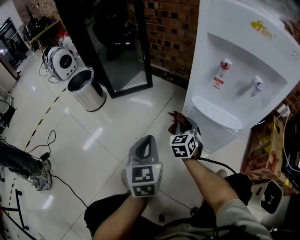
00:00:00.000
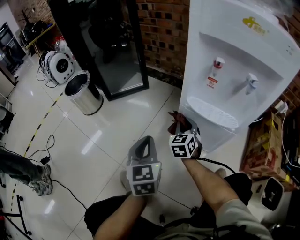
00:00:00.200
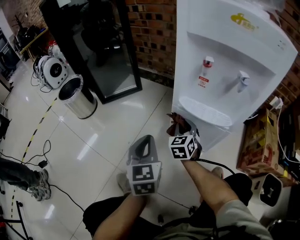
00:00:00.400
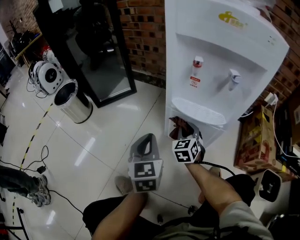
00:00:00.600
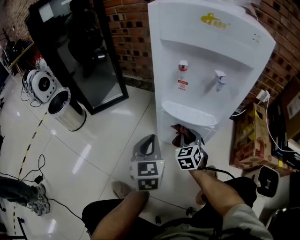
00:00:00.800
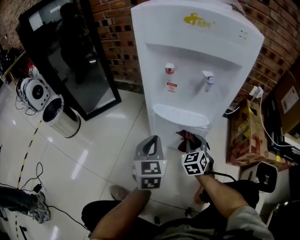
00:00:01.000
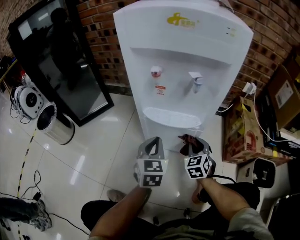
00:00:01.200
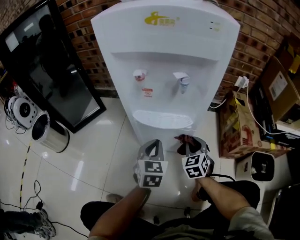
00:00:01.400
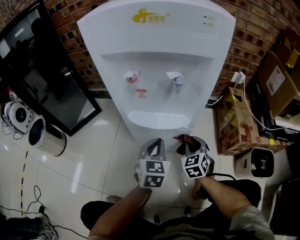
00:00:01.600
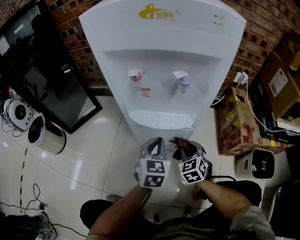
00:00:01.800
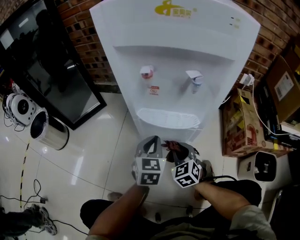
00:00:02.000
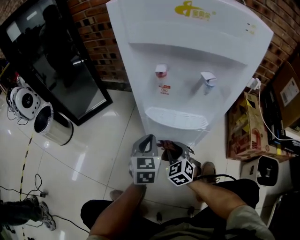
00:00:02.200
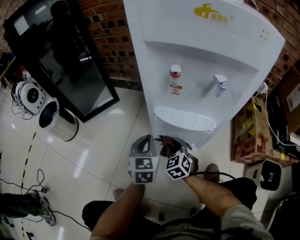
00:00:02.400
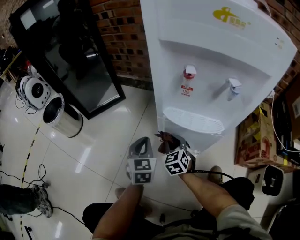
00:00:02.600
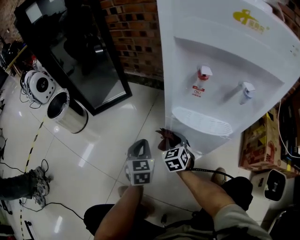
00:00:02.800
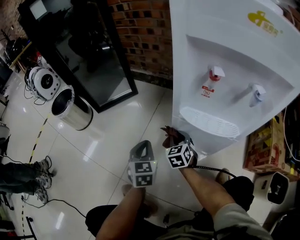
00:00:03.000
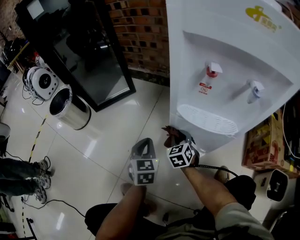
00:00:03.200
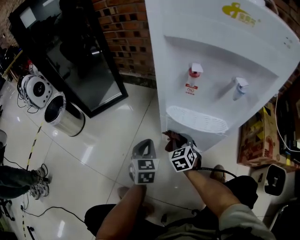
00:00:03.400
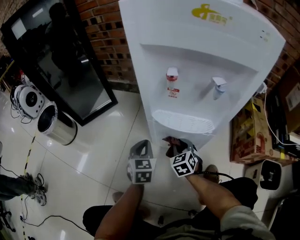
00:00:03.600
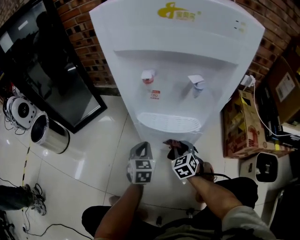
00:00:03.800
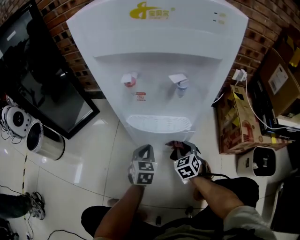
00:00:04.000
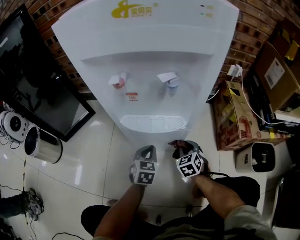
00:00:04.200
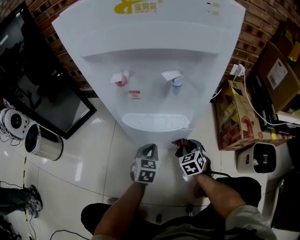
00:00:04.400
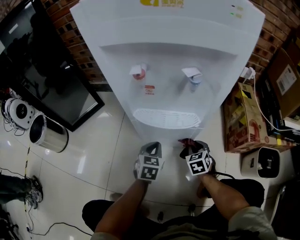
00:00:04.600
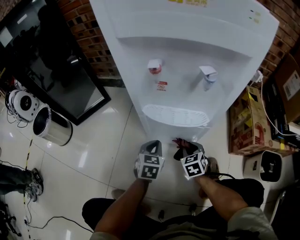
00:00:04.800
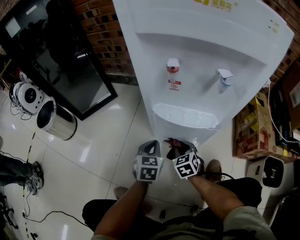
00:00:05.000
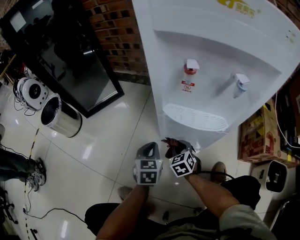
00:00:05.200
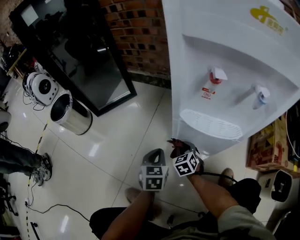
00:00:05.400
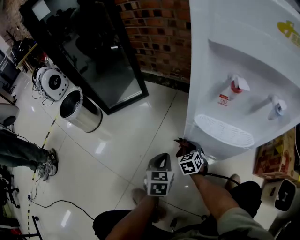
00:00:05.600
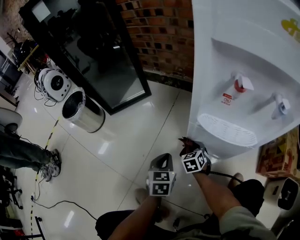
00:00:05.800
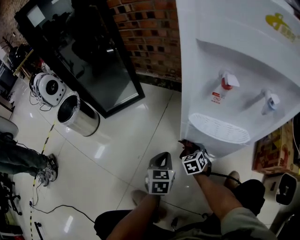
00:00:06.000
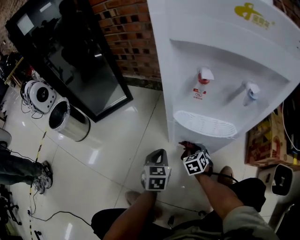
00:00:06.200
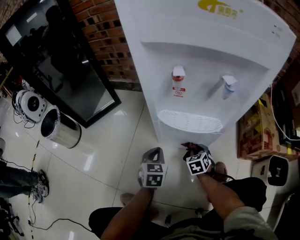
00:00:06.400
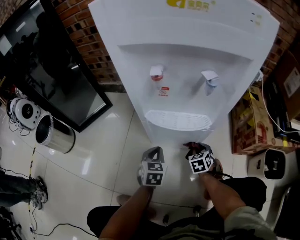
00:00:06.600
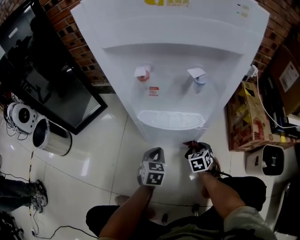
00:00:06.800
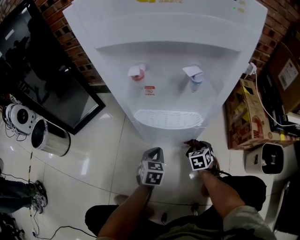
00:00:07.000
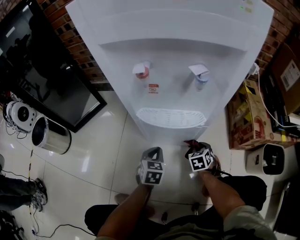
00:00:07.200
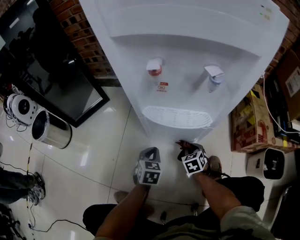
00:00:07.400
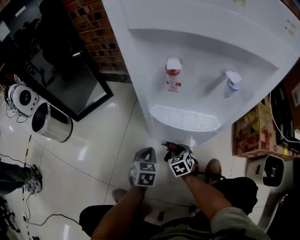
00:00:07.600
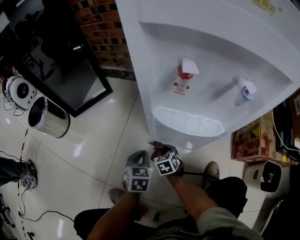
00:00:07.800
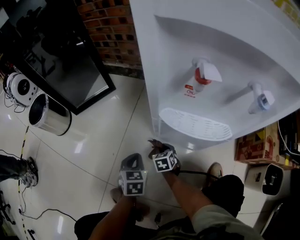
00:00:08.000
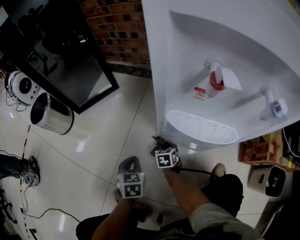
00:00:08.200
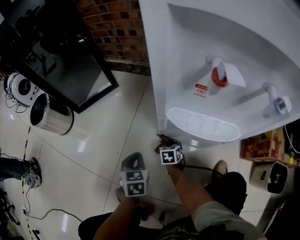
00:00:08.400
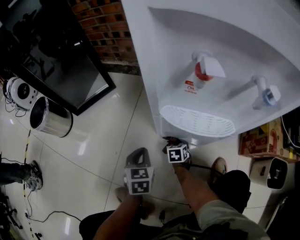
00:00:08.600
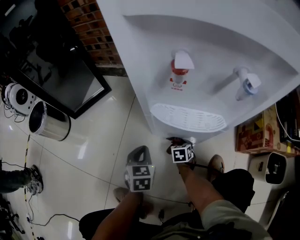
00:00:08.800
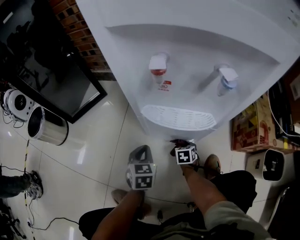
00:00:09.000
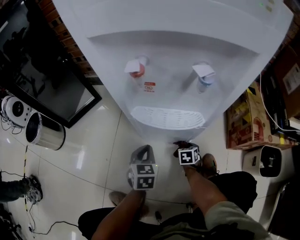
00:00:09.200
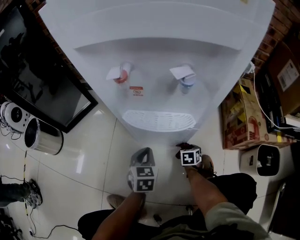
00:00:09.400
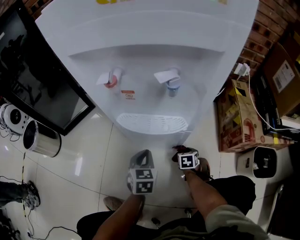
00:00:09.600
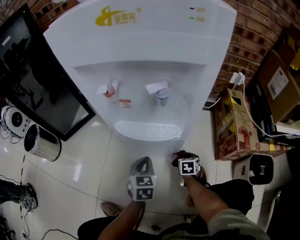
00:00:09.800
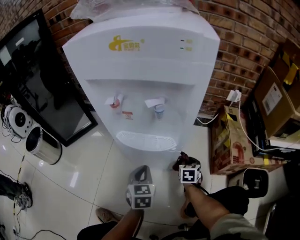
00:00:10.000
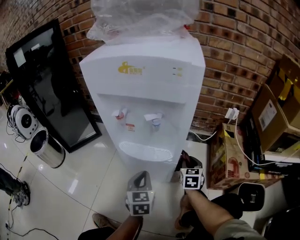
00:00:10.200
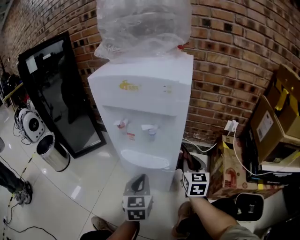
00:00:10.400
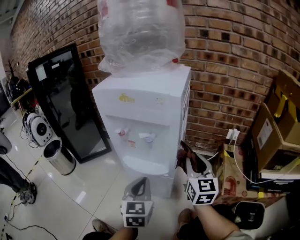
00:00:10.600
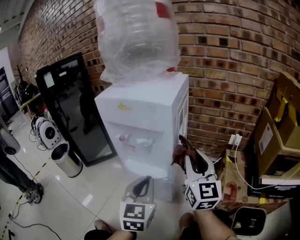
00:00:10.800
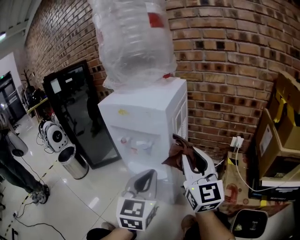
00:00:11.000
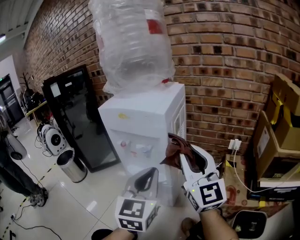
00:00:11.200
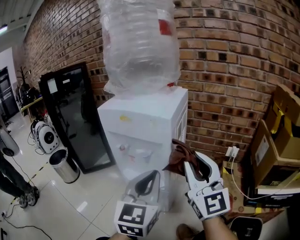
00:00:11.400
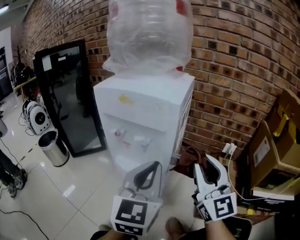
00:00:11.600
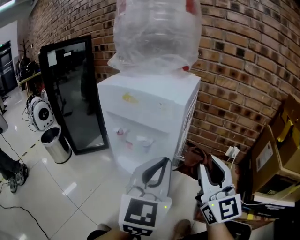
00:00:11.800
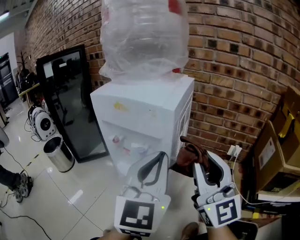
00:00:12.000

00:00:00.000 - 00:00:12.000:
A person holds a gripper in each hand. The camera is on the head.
00:00:00.000 - 00:00:01.600: The left gripper moves roughly 25 cm, and swivels roughly 40 degrees. The right gripper shifts by about 25 cm.
00:00:01.600 - 00:00:03.000: Both grippers travel together to the left, roughly 25 cm. The left gripper changes its angle by some 30 degrees.
00:00:03.000 - 00:00:04.400: The right gripper shifts by roughly 25 cm. The left gripper ends up about 20 cm from where it was, and swivels roughly 30 degrees.
00:00:04.400 - 00:00:06.000: The two grippers go some 20 cm to the left. The left gripper changes its angle by some 20 degrees.
00:00:06.000 - 00:00:07.600: The left gripper shifts about 5 cm to the right. Meanwhile the right gripper reaches about 25 cm to the right, then returns.
00:00:07.600 - 00:00:09.000: The left gripper travels to the left and back again, roughly 10 cm each way. The right gripper goes about 10 cm to the right and downward, and changes its angle by roughly 20 degrees.
00:00:09.000 - 00:00:10.400: The right gripper is displaced upward by some 35 cm, and tilts its fingers approximately 40 degrees upward. The left gripper goes about 25 cm upward and to the right, and rotates approximately 20 degrees.
00:00:10.400 - 00:00:12.000: Both grippers travel together upward, roughly 30 cm. The left gripper changes its angle by approximately 30 degrees. The right gripper angles its fingers upward, by about 40 degrees.

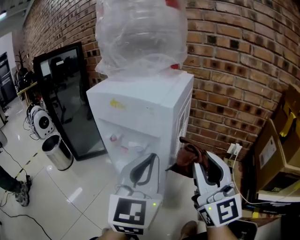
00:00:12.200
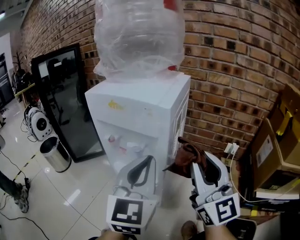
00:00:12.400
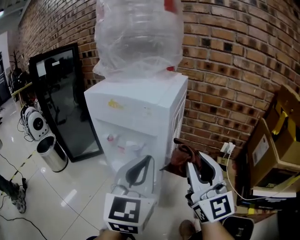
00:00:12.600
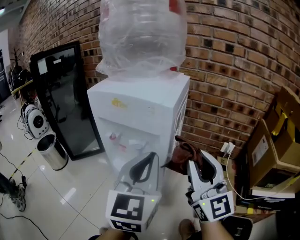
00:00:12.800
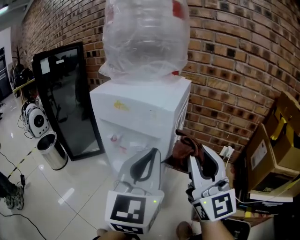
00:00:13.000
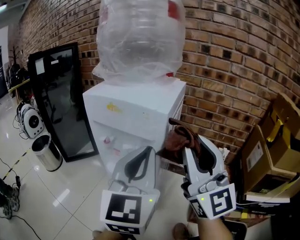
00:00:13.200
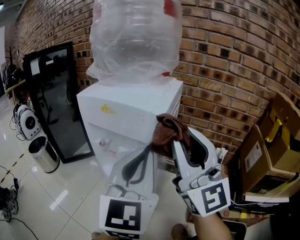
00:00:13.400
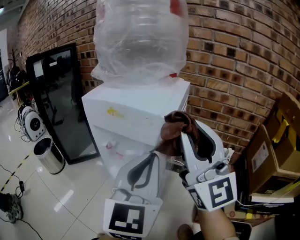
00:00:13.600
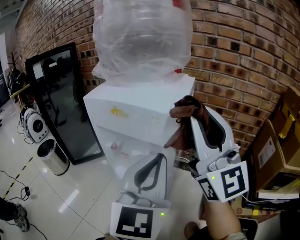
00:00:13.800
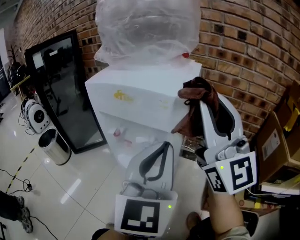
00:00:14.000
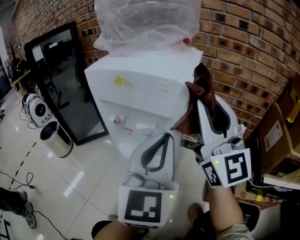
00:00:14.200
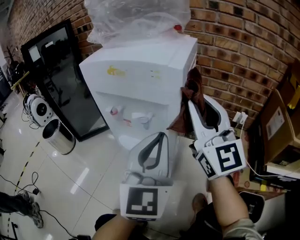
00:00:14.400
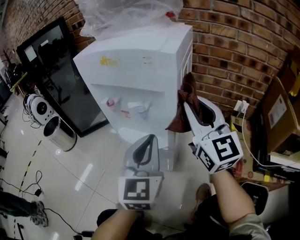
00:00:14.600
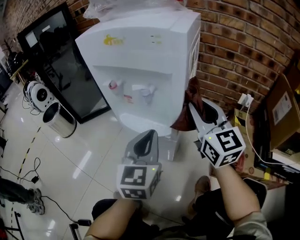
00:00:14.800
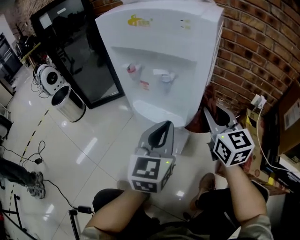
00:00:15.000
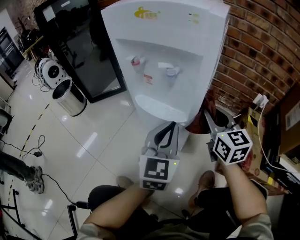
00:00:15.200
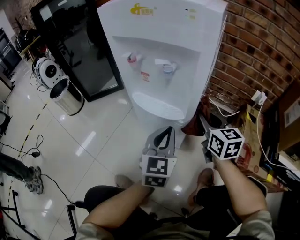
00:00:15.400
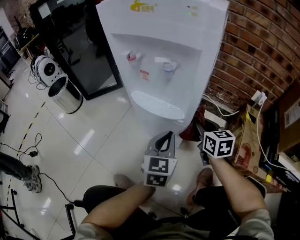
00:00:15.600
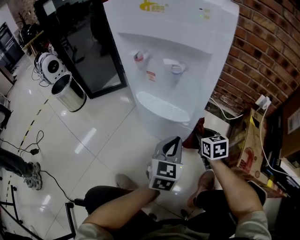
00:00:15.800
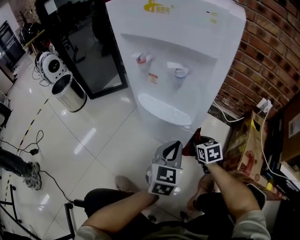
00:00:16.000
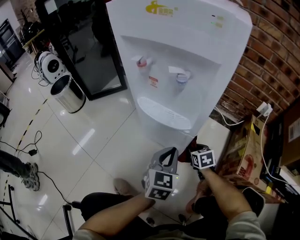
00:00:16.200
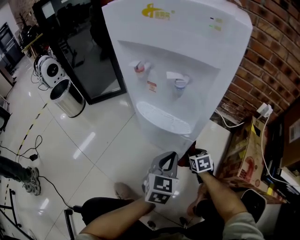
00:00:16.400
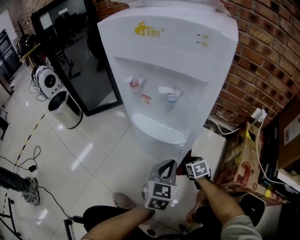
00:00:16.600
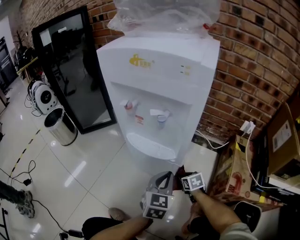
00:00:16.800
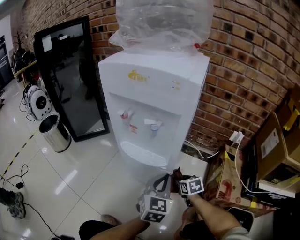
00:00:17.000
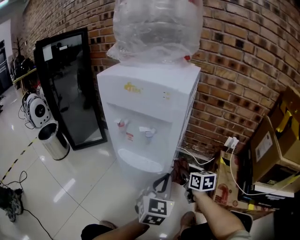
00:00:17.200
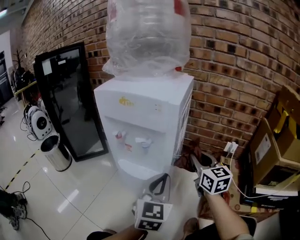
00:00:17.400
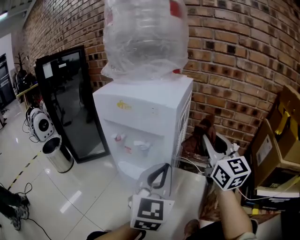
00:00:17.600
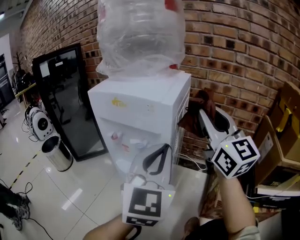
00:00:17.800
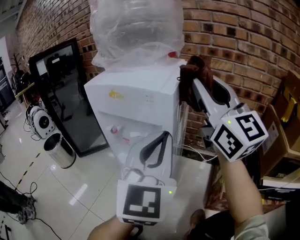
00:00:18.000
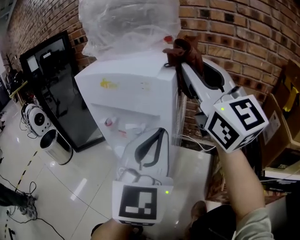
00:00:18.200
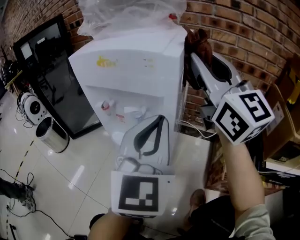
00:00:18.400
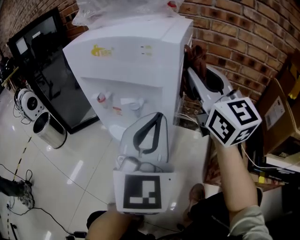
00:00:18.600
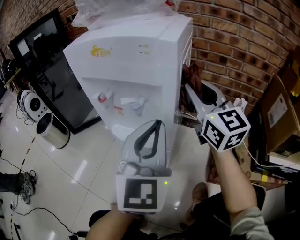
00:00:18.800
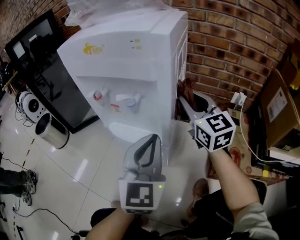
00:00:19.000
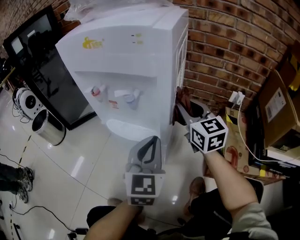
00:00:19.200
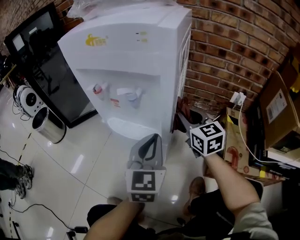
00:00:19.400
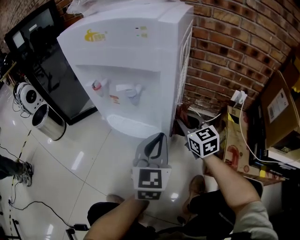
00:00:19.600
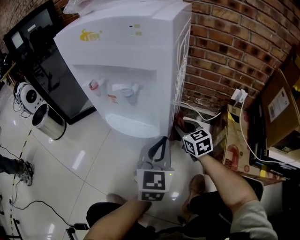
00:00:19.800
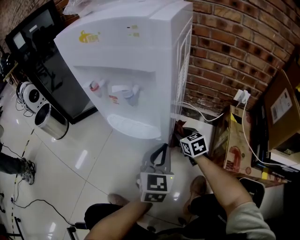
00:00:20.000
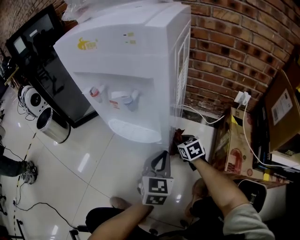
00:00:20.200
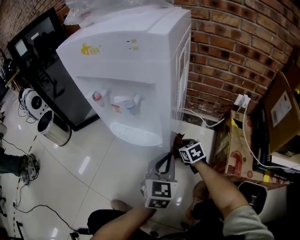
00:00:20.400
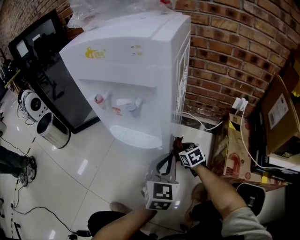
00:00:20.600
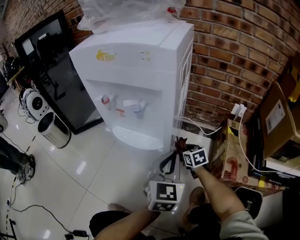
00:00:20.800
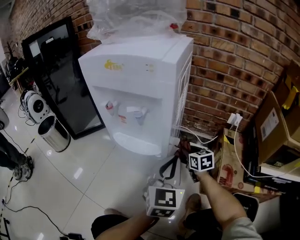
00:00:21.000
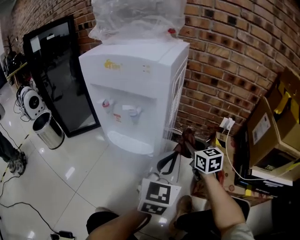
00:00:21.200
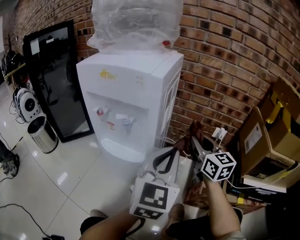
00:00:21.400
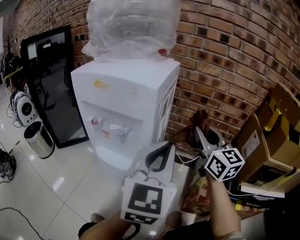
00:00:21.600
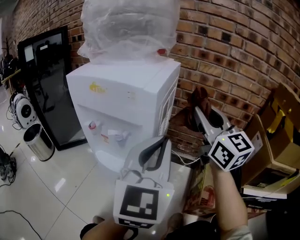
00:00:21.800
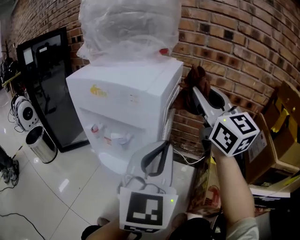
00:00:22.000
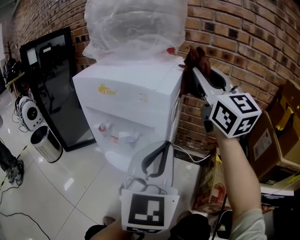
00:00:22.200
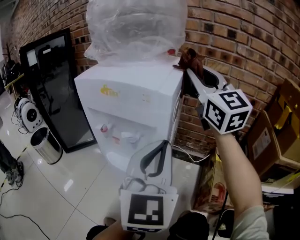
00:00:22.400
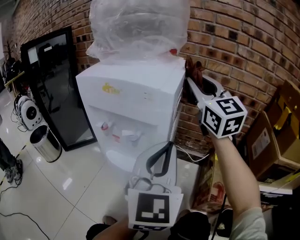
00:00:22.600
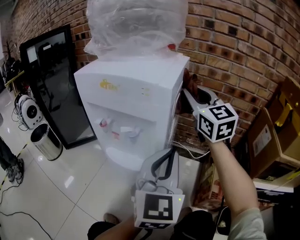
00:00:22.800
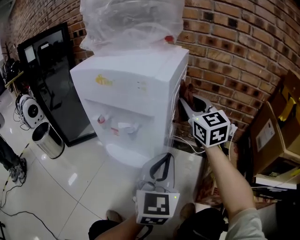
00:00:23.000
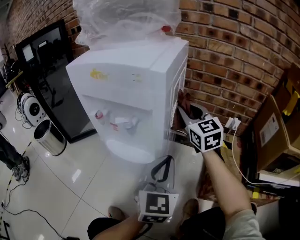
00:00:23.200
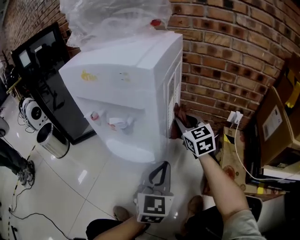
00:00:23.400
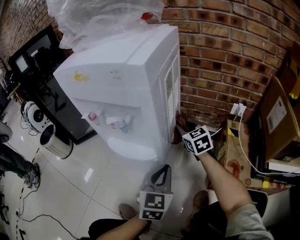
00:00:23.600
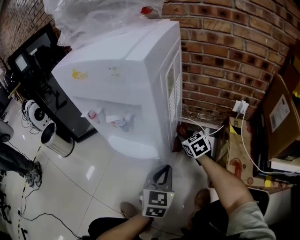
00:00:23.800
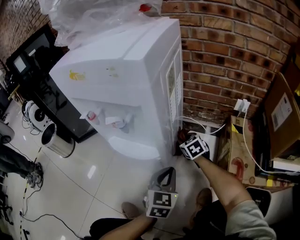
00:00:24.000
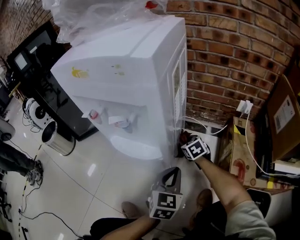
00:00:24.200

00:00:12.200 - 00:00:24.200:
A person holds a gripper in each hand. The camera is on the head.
00:00:12.200 - 00:00:13.800: The right gripper heads upward and forward, covering roughly 15 cm.
00:00:13.800 - 00:00:15.200: The two grippers go about 25 cm downward. The right gripper points its fingers roughly 40 degrees further downward.
00:00:15.200 - 00:00:16.600: The right gripper shifts approximately 35 cm downward, and angles its fingers downward, by roughly 40 degrees. The left gripper goes about 15 cm downward.
00:00:16.600 - 00:00:18.200: The left gripper goes about 35 cm upward, and tips its fingers upward by roughly 30 degrees; the right gripper shifts some 70 cm upward, and tilts its fingers some 80 degrees upward.
00:00:18.200 - 00:00:19.800: The right gripper shifts roughly 50 cm downward, and angles its fingers downward, by about 50 degrees; the left gripper travels downward by roughly 25 cm, and swivels some 20 degrees.
00:00:19.800 - 00:00:21.200: The grippers both shift upward and to the right by about 10 cm.
00:00:21.200 - 00:00:22.600: The right gripper moves upward, about 35 cm, and points its fingers some 30 degrees further upward. The left gripper travels upward by some 15 cm.
00:00:22.600 - 00:00:24.200: The right gripper shifts some 50 cm downward, and tilts its fingers approximately 60 degrees downward, while the left gripper heads downward, covering about 30 cm, and turns by roughly 30 degrees.
